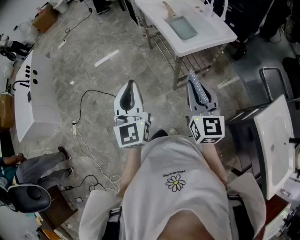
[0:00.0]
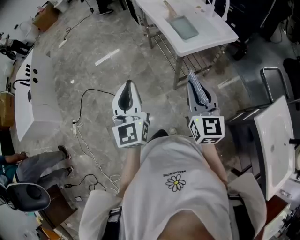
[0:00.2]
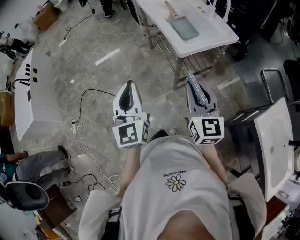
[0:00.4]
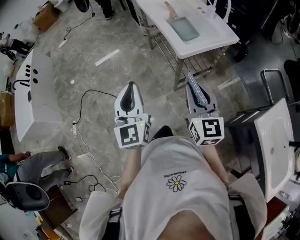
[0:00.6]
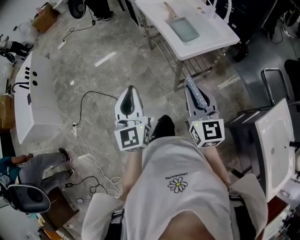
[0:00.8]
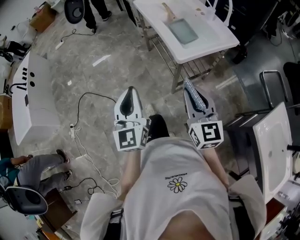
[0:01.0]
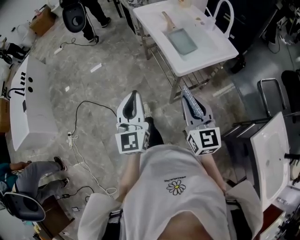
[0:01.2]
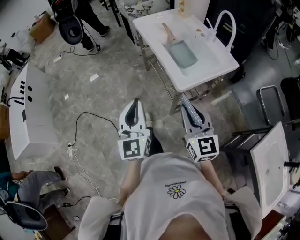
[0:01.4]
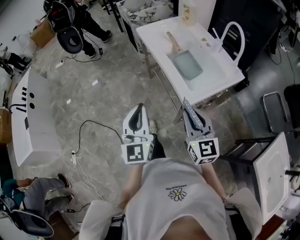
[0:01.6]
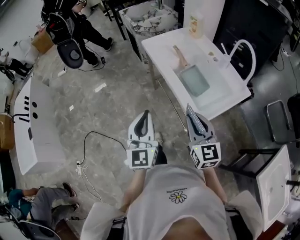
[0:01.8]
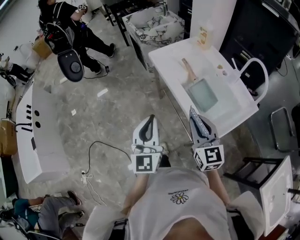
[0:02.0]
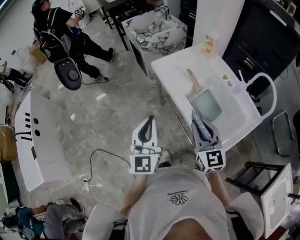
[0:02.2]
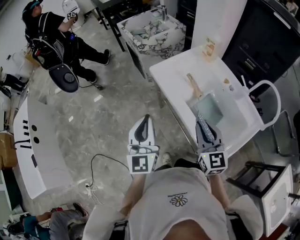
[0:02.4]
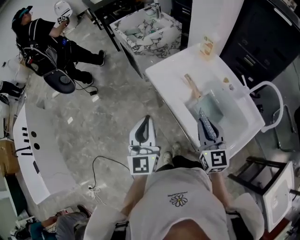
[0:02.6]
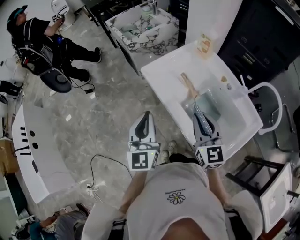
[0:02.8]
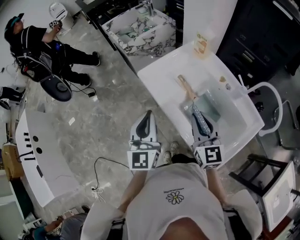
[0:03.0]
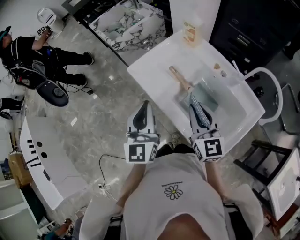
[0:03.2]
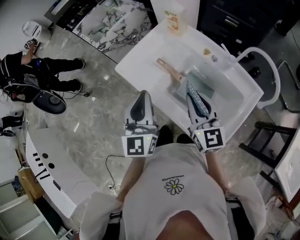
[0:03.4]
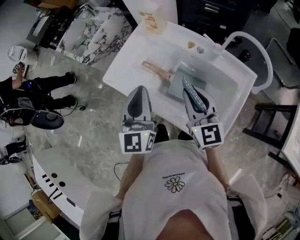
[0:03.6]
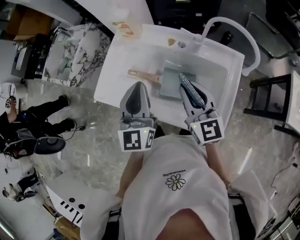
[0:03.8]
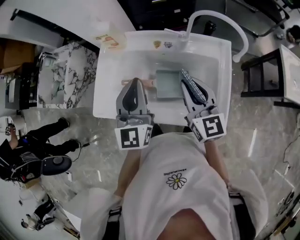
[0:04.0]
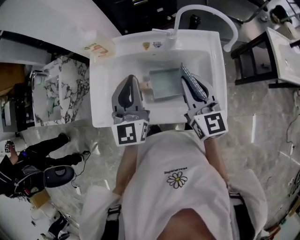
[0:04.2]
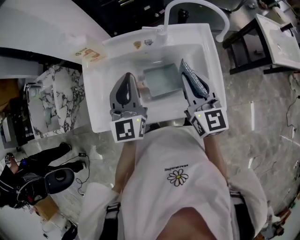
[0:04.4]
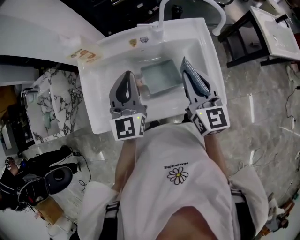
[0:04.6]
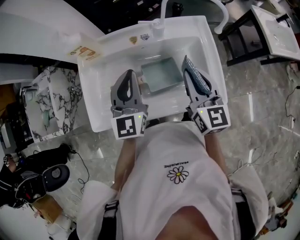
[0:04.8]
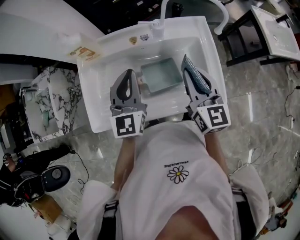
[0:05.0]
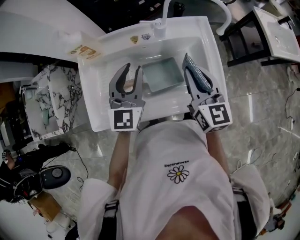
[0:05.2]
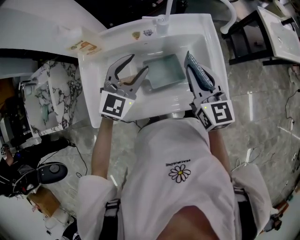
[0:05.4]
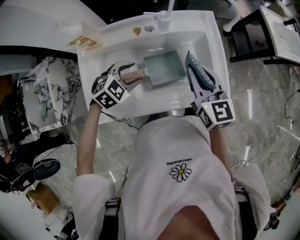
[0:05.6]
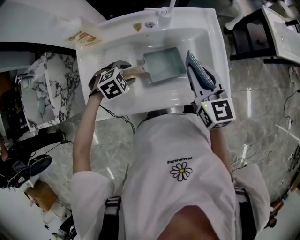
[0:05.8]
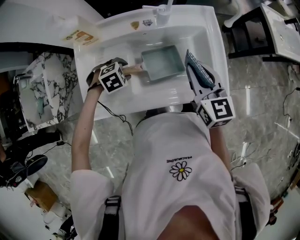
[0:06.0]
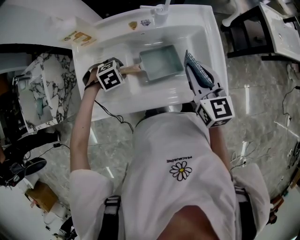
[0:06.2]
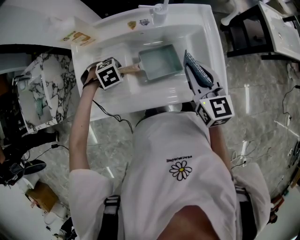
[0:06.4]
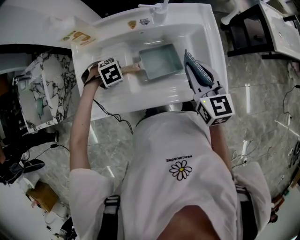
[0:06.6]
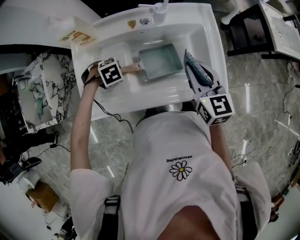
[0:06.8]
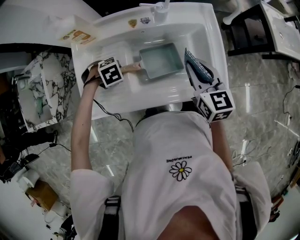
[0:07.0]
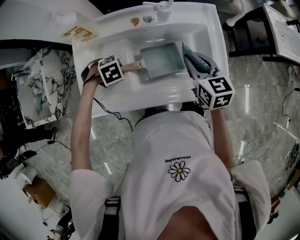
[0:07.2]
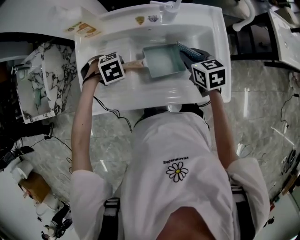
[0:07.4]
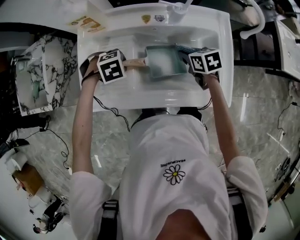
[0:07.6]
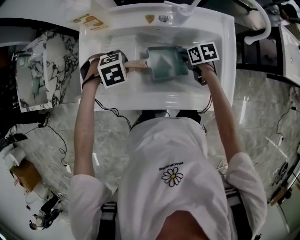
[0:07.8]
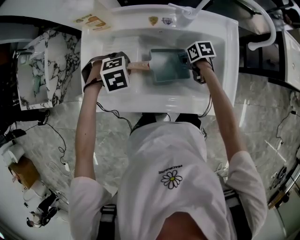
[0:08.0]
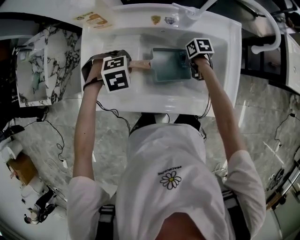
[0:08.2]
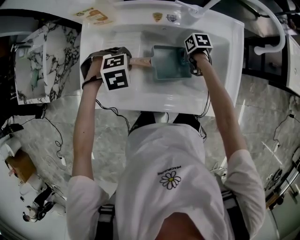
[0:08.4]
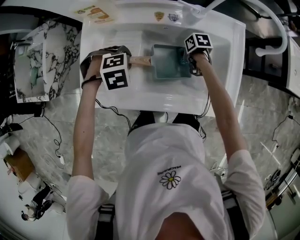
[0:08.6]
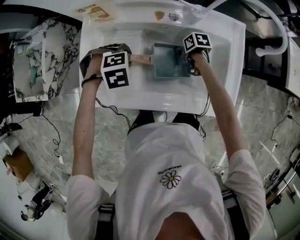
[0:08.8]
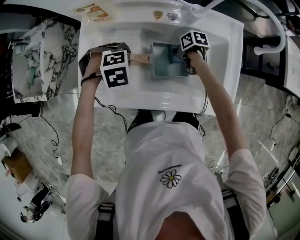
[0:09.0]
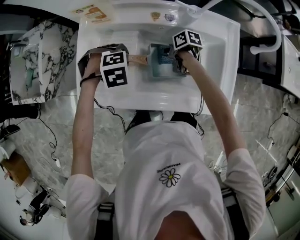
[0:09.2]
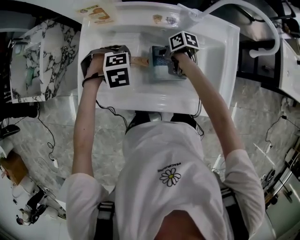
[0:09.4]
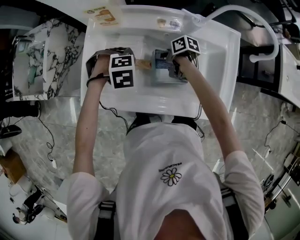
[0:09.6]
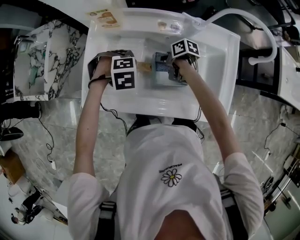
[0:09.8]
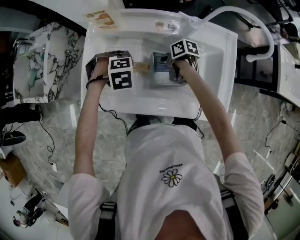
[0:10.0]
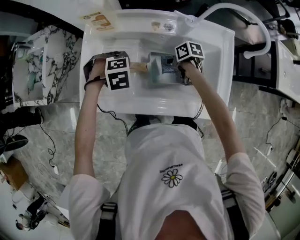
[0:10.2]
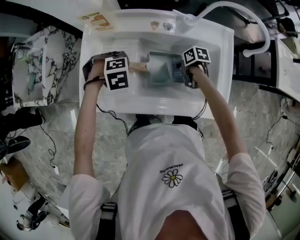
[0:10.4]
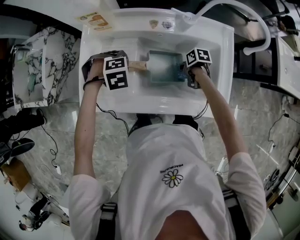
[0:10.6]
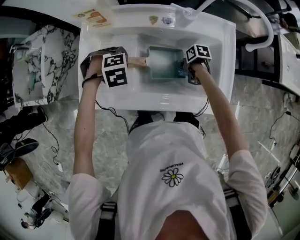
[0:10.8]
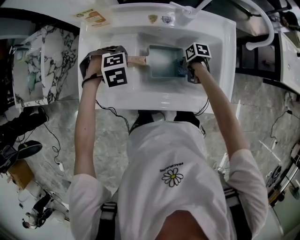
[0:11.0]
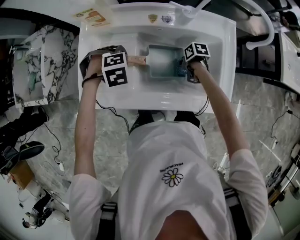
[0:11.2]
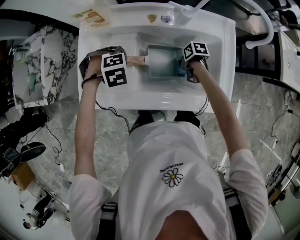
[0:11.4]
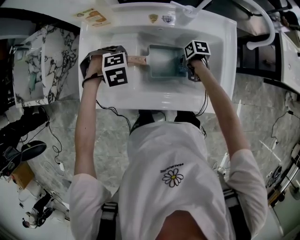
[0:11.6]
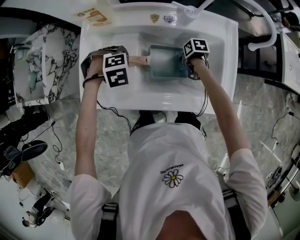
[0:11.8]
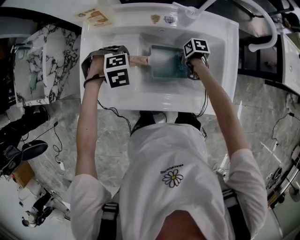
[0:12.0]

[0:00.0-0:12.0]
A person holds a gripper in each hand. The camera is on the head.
0.0 to 1.6 s: Both grippers travel together forward, about 20 cm.
1.6 to 3.0 s: Both grippers travel together forward, some 40 cm.
3.0 to 4.4 s: The right gripper shifts by some 15 cm, and rotates about 60 degrees; the left gripper ends up approximately 25 cm from where it was, and turns by approximately 60 degrees.
4.4 to 6.0 s: The left gripper goes approximately 25 cm downward, tips its fingers downward by about 80 degrees, and opens its fingers.
6.0 to 7.6 s: The right gripper goes about 20 cm downward, and tilts its fingers some 30 degrees downward.
7.6 to 9.0 s: The right gripper heads downward, covering about 10 cm, and rotates roughly 40 degrees.
10.4 to 12.0 s: The grippers make only small movements.

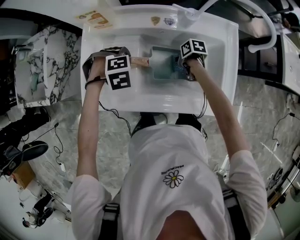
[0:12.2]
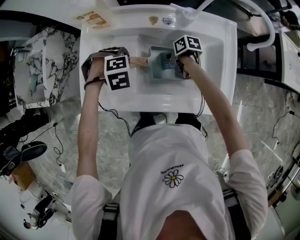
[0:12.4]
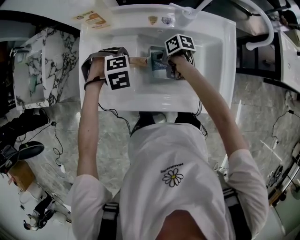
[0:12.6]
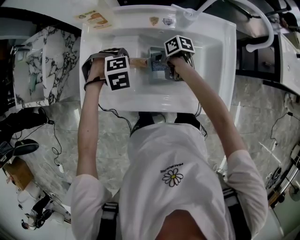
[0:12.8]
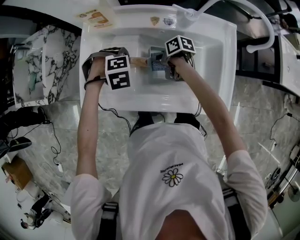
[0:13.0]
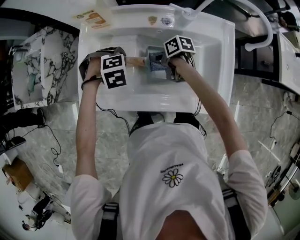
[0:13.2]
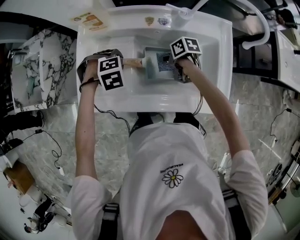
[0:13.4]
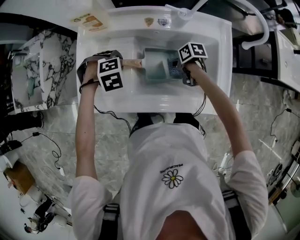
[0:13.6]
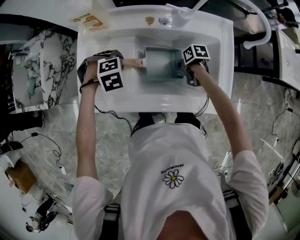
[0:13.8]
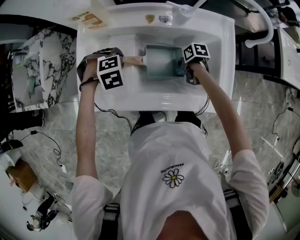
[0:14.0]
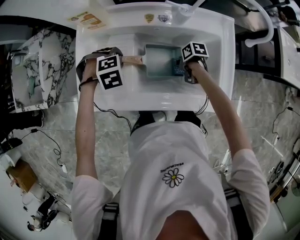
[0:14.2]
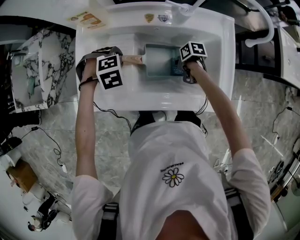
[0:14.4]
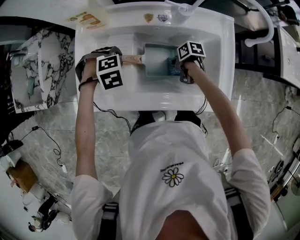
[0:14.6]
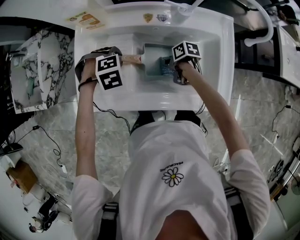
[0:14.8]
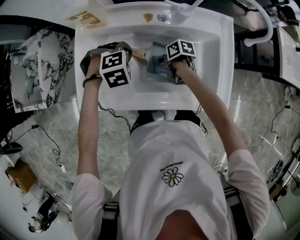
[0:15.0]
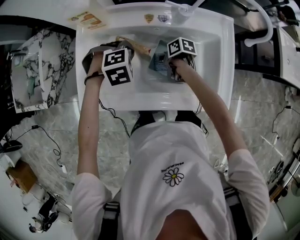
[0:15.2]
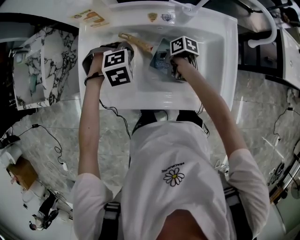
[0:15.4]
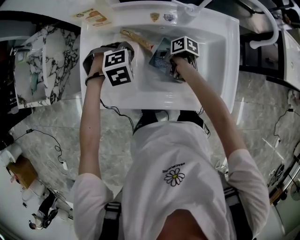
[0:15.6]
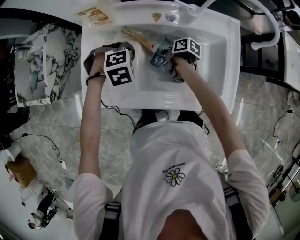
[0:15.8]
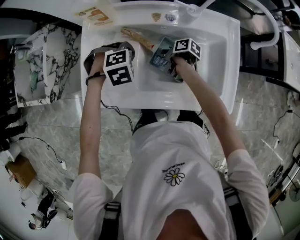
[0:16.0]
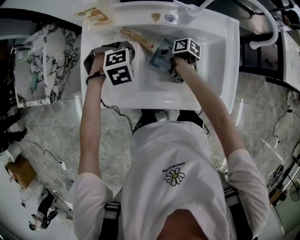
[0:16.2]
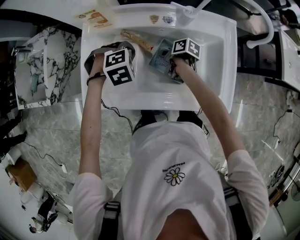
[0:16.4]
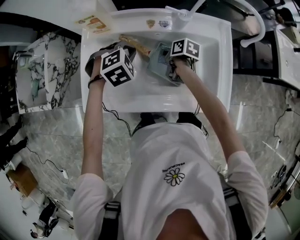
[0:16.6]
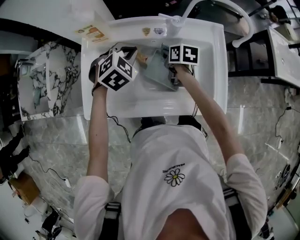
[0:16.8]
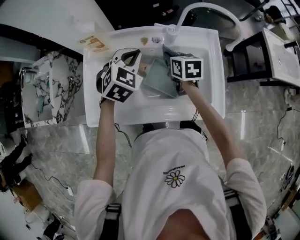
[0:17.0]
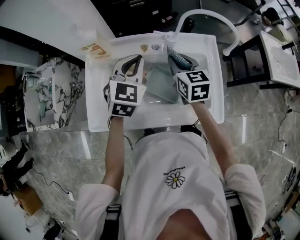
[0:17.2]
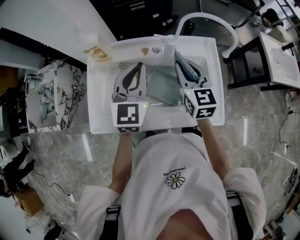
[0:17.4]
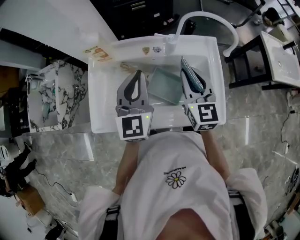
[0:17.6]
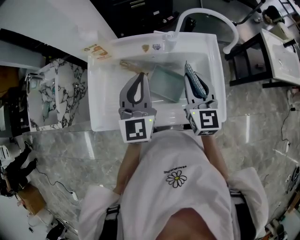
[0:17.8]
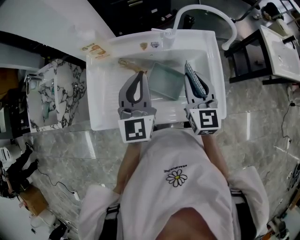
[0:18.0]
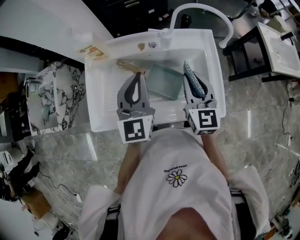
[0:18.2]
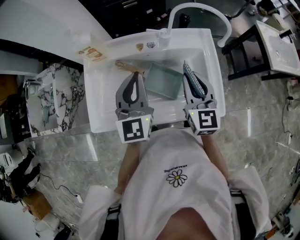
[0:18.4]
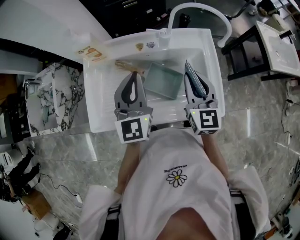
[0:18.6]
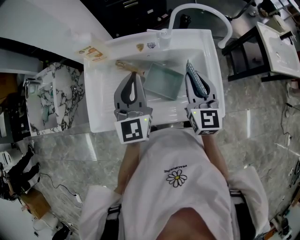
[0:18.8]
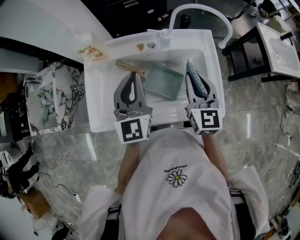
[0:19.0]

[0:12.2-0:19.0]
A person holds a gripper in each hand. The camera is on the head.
13.6 to 15.0 s: The left gripper shifts by roughly 5 cm, and closes its fingers, while the right gripper changes place by about 5 cm.
15.0 to 16.2 s: The right gripper swivels about 20 degrees.
16.2 to 17.6 s: The grippers both shift upward by roughly 25 cm. The left gripper angles its fingers upward, by roughly 70 degrees. Meanwhile the right gripper points its fingers some 30 degrees further upward.
17.6 to 19.0 s: The grippers make only small movements.

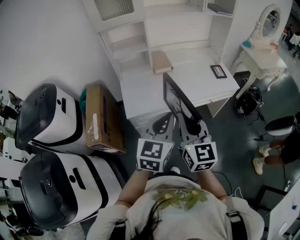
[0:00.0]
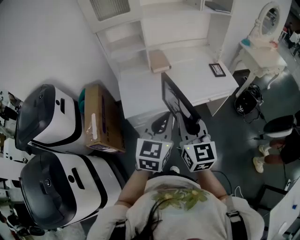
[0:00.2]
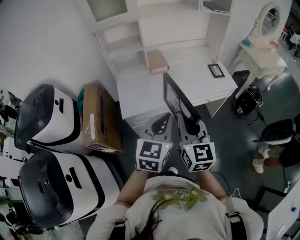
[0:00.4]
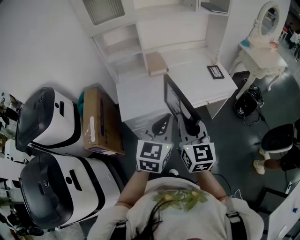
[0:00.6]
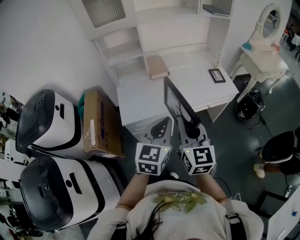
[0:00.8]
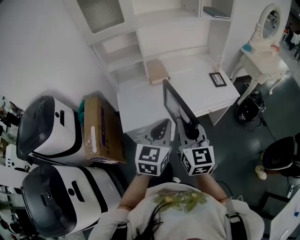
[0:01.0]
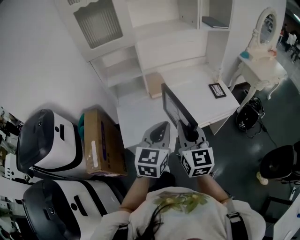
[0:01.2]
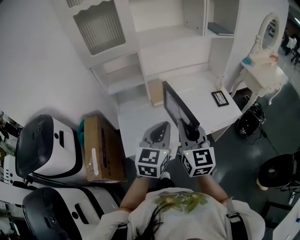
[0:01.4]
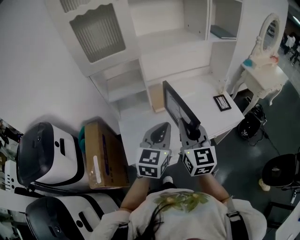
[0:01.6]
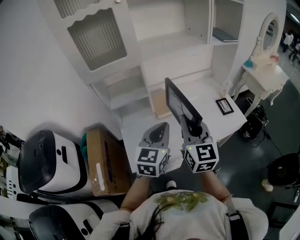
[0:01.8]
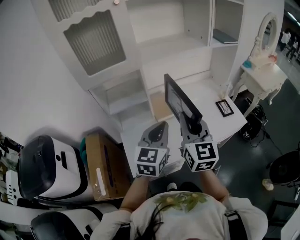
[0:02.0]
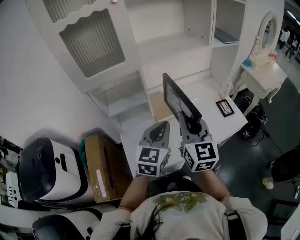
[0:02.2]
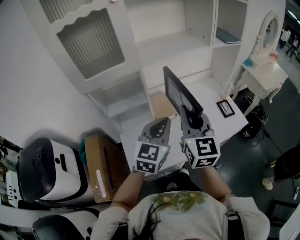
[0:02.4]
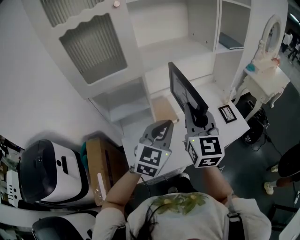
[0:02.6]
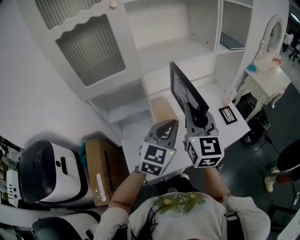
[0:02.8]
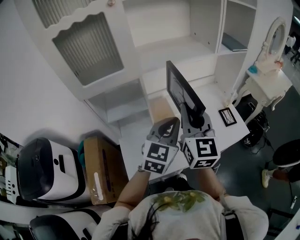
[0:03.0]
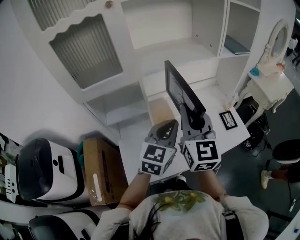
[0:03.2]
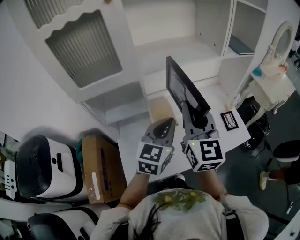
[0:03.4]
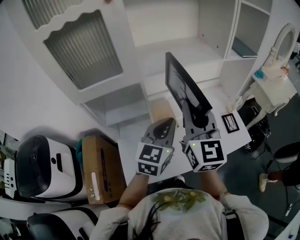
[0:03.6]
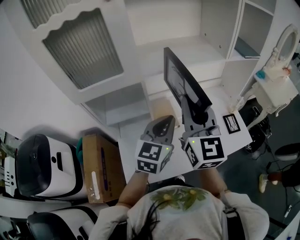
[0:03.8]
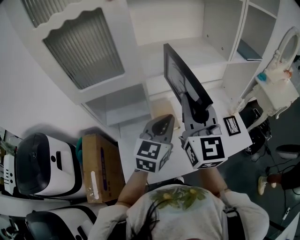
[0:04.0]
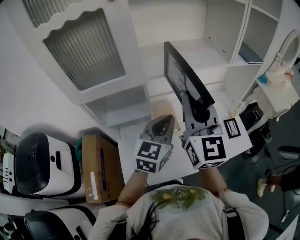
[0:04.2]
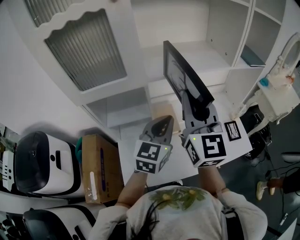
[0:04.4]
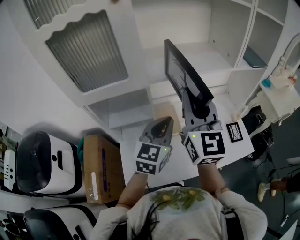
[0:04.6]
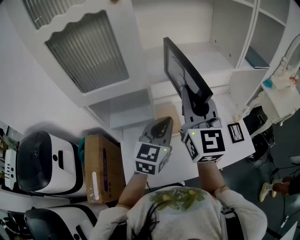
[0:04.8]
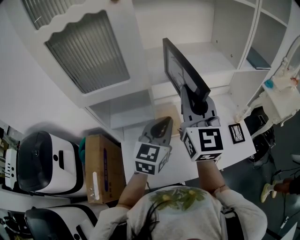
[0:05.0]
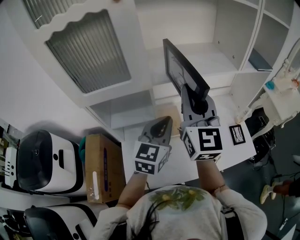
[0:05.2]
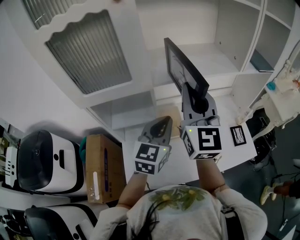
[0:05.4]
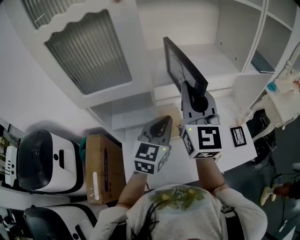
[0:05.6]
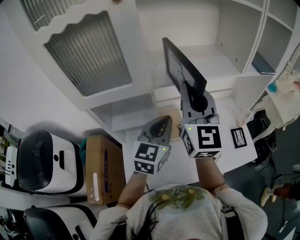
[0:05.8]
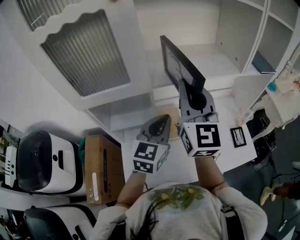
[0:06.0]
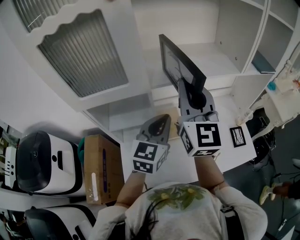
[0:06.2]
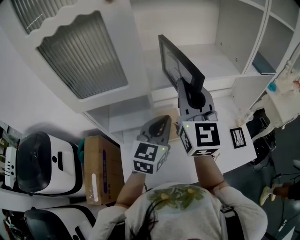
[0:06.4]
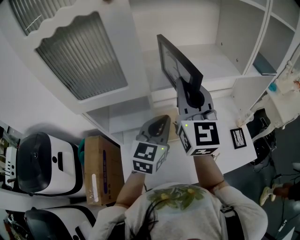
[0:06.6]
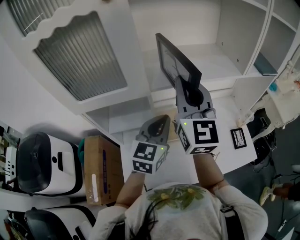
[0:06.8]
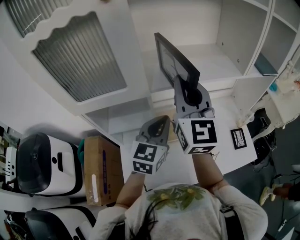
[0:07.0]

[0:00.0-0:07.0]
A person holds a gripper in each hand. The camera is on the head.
0.0 to 1.4 s: Both grippers move forward, approximately 20 cm.
1.4 to 2.8 s: The left gripper shifts about 15 cm forward, while the right gripper heads forward and upward, covering approximately 20 cm.
2.8 to 4.2 s: The right gripper travels forward and upward by about 10 cm. The left gripper shifts about 10 cm forward.
4.2 to 5.6 s: The right gripper travels forward by approximately 5 cm.
5.6 to 7.0 s: The grippers stay close to where they were, moving slightly.
